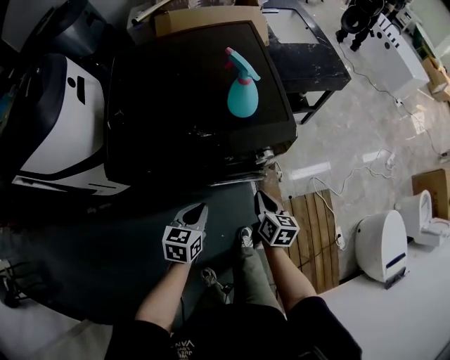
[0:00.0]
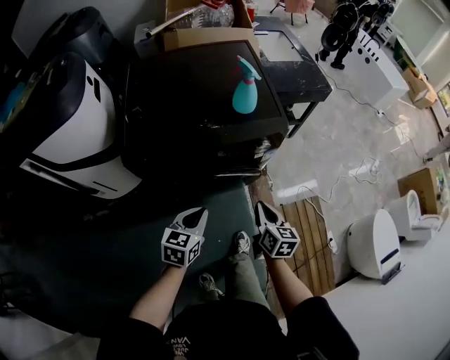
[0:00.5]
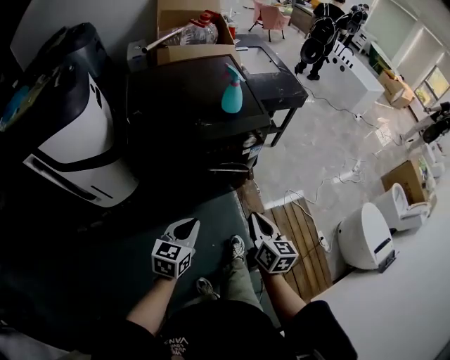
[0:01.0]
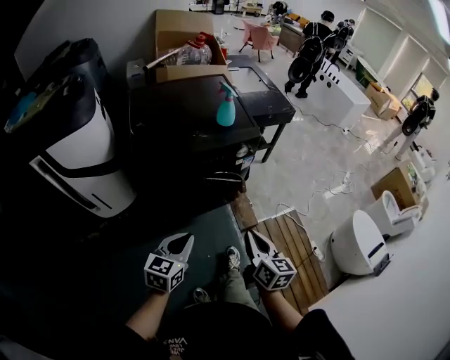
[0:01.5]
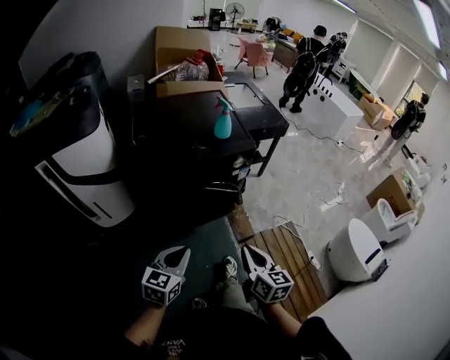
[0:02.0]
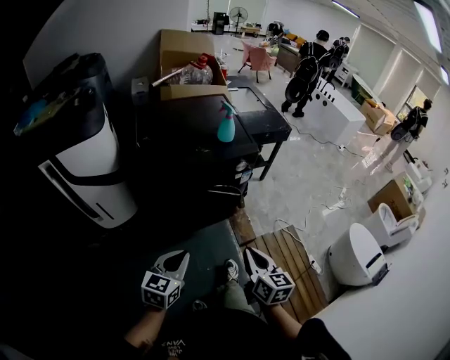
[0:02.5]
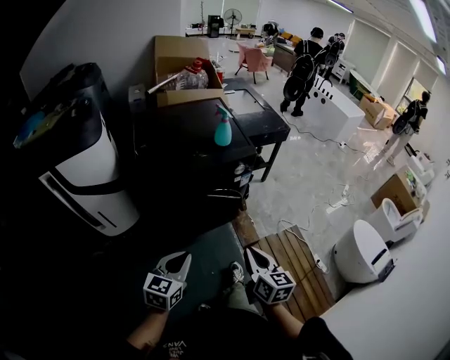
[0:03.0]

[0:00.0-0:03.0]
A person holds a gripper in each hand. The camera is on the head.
0:00.0 to 0:01.5: Both grippers travel together backward and upward, about 35 cm. The left gripper changes its angle by some 20 degrees.
0:01.5 to 0:03.0: The left gripper shifts by roughly 5 cm.

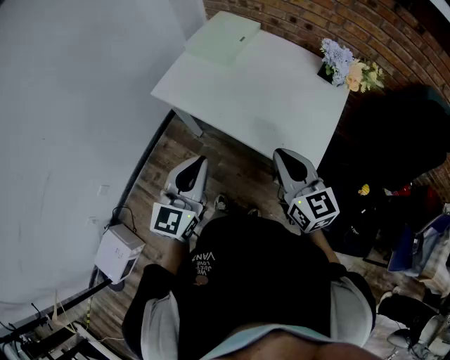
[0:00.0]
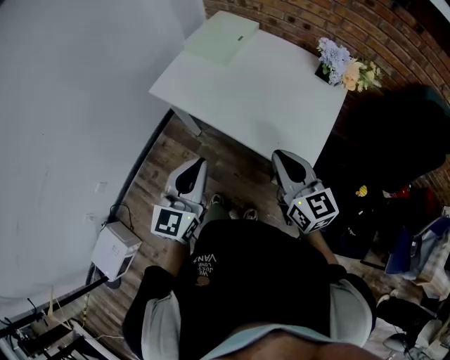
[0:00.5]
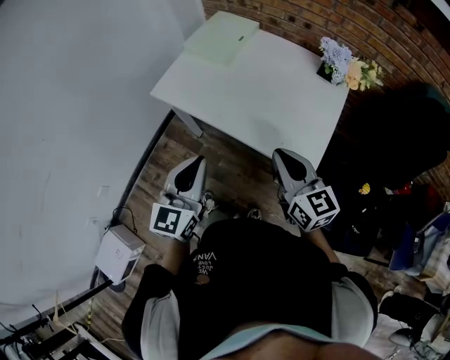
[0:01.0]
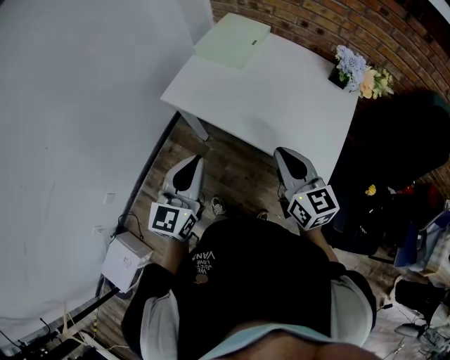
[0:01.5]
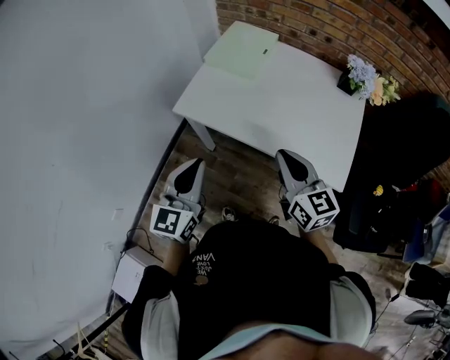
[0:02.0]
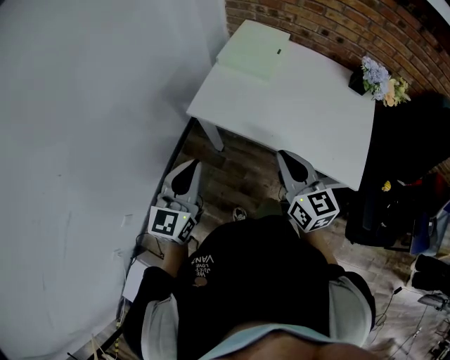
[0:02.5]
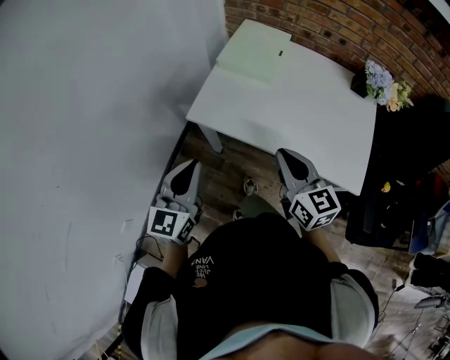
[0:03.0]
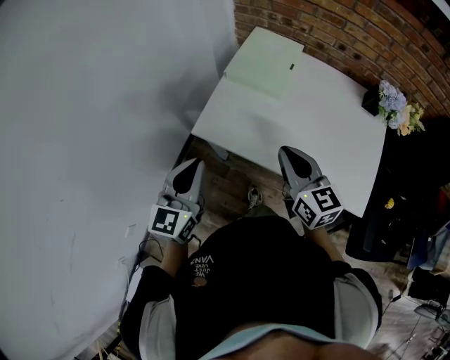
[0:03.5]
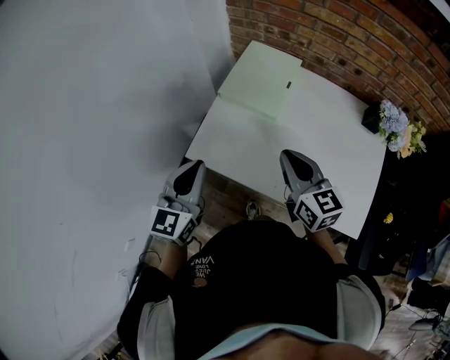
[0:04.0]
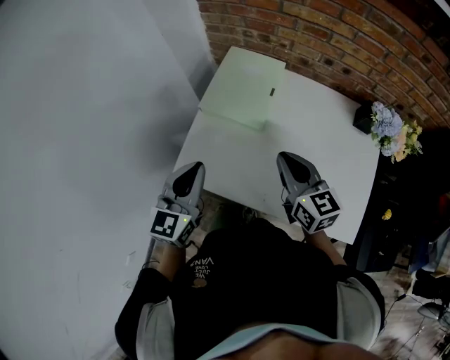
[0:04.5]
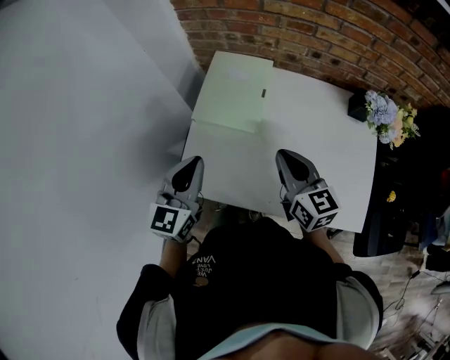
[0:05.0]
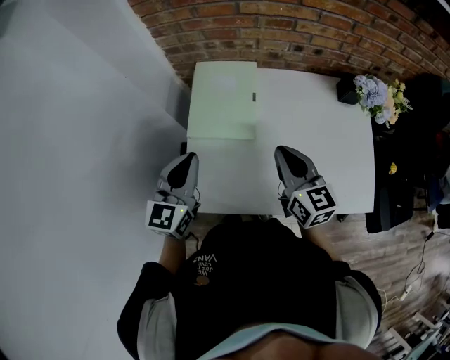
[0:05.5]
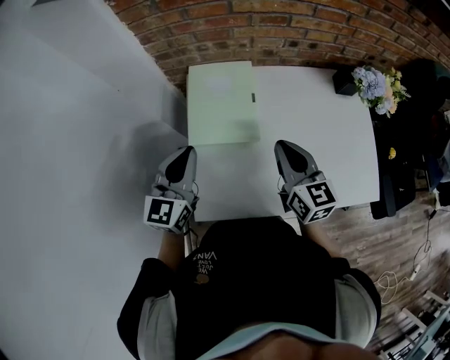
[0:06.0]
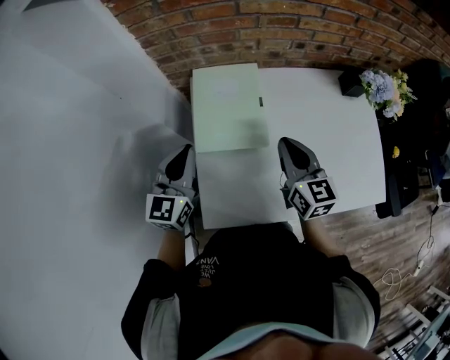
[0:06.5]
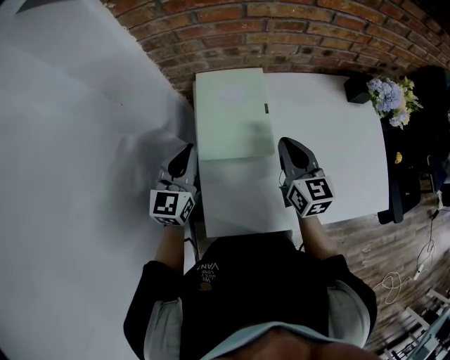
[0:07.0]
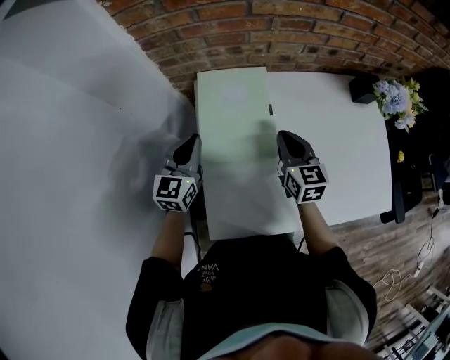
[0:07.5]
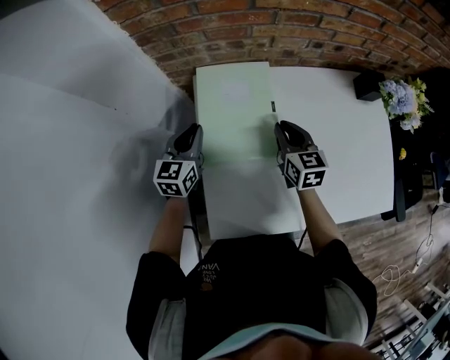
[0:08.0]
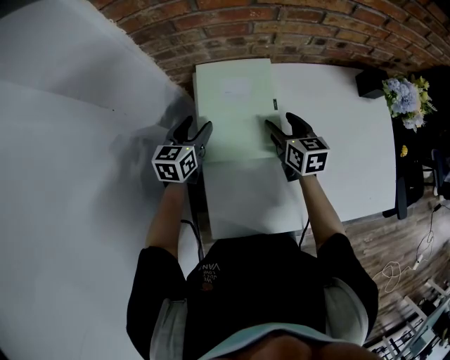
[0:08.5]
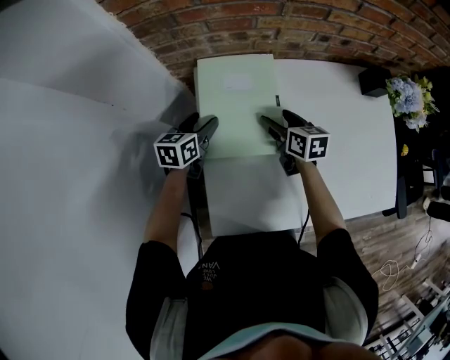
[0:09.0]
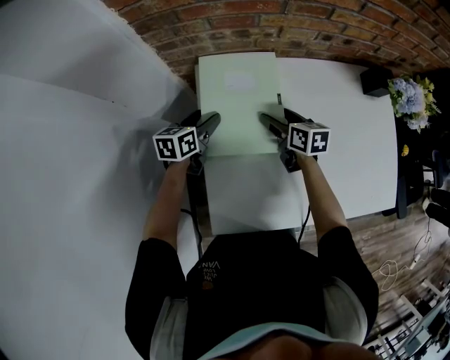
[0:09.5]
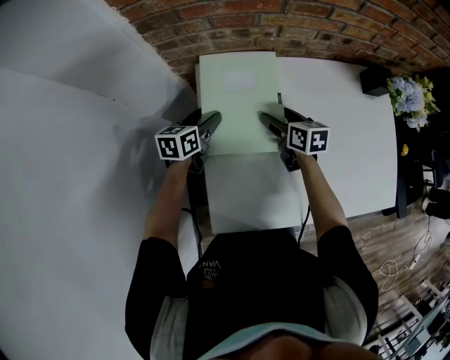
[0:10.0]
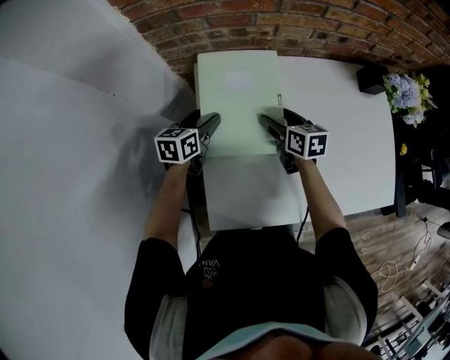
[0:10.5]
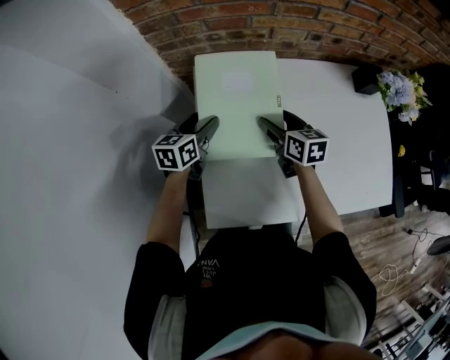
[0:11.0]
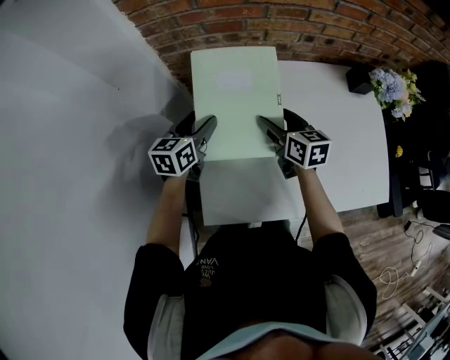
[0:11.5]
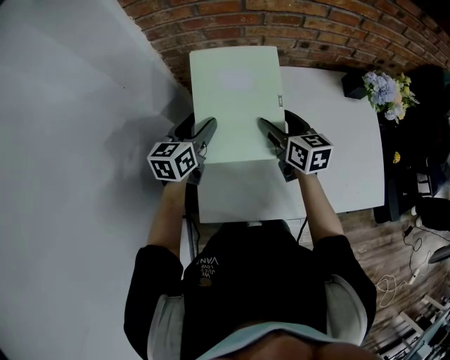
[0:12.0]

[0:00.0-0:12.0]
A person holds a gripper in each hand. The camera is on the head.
0:00.0 to 0:02.0: The two grippers go some 15 cm to the left and forward.
0:02.0 to 0:04.0: The grippers both shift forward by approximately 20 cm.
0:04.0 to 0:06.0: The right gripper changes place by roughly 10 cm, and swivels about 30 degrees; the left gripper changes place by about 25 cm, and rotates about 30 degrees.
0:06.0 to 0:08.0: The right gripper goes approximately 20 cm downward and forward. Meanwhile the left gripper travels forward and downward by about 20 cm.
0:08.0 to 0:10.0: Both grippers move downward, approximately 5 cm. The left gripper rotates roughly 30 degrees, and opens up, while the right gripper turns by some 20 degrees, and opens its fingers.
0:10.0 to 0:12.0: Both grippers move upward and backward, about 15 cm.

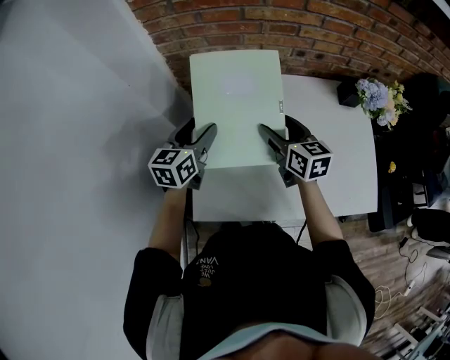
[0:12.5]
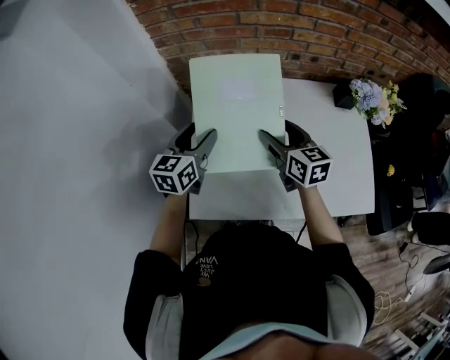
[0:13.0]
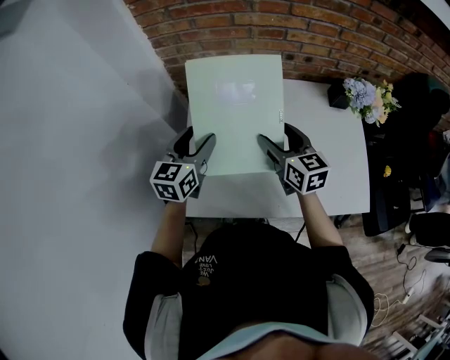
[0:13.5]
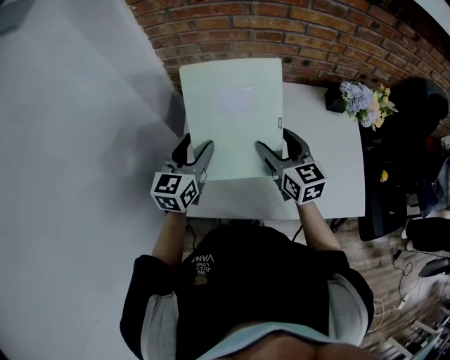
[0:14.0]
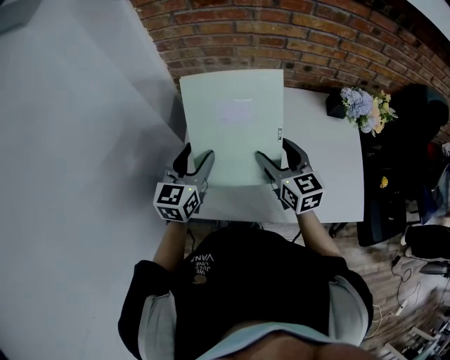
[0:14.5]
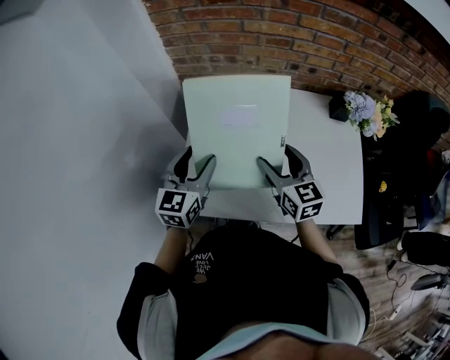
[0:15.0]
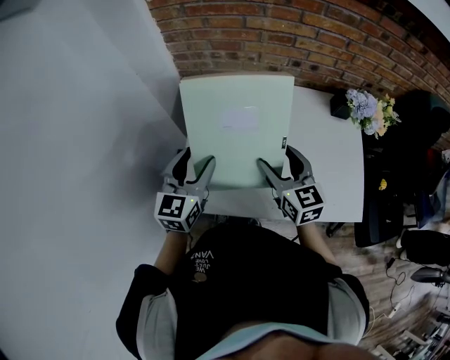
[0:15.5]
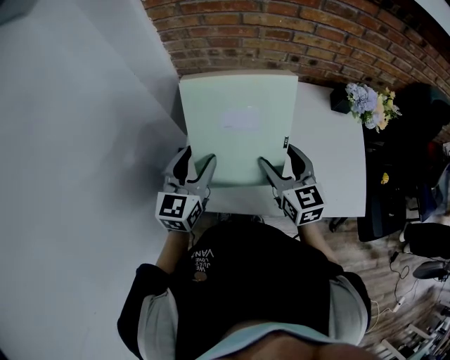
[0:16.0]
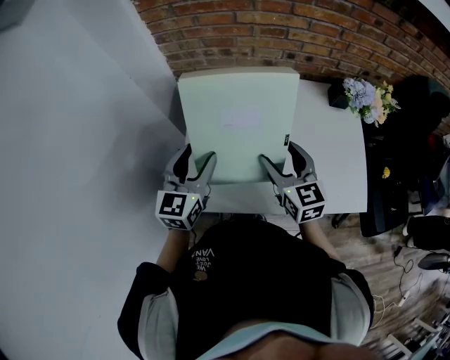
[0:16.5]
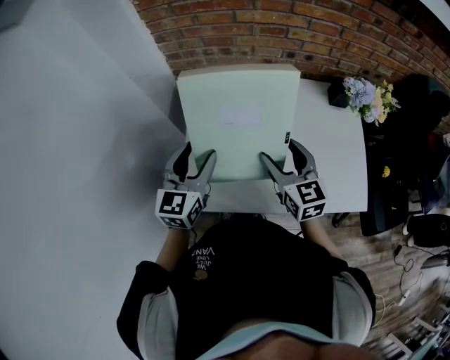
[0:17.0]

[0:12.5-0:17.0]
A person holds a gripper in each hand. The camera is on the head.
0:12.5 to 0:14.5: Both grippers travel together backward, about 10 cm.
0:14.5 to 0:17.0: The grippers move only a little.

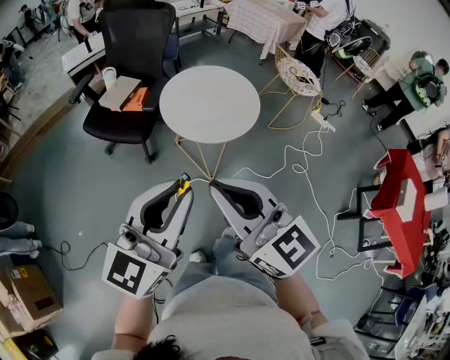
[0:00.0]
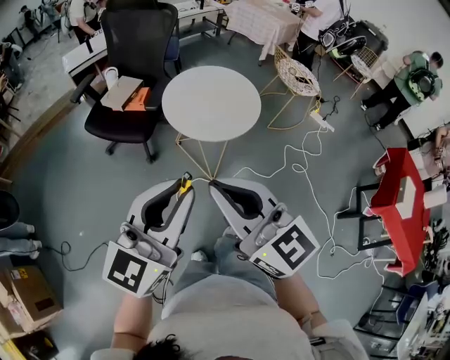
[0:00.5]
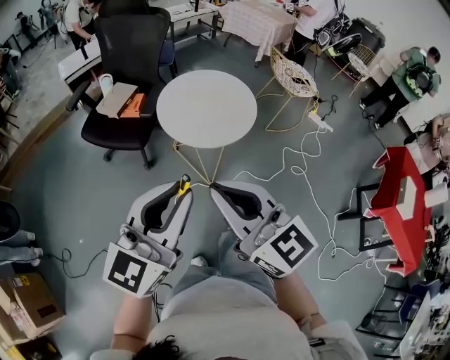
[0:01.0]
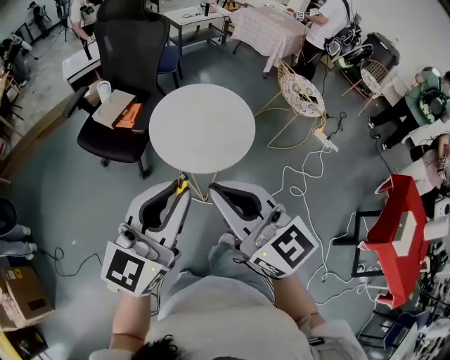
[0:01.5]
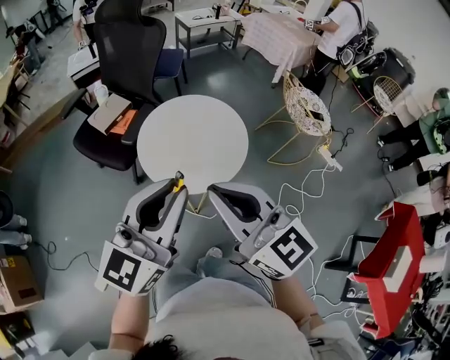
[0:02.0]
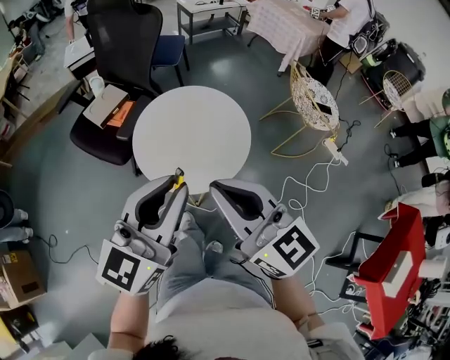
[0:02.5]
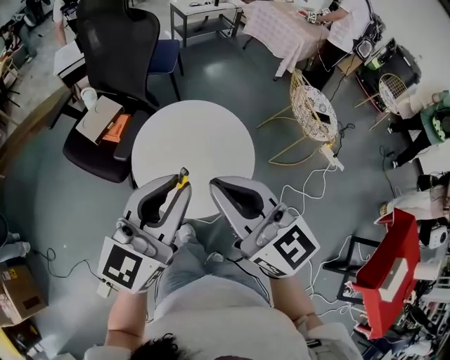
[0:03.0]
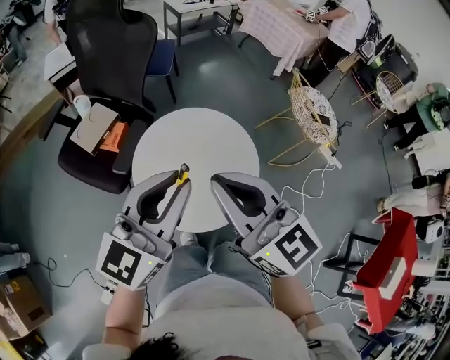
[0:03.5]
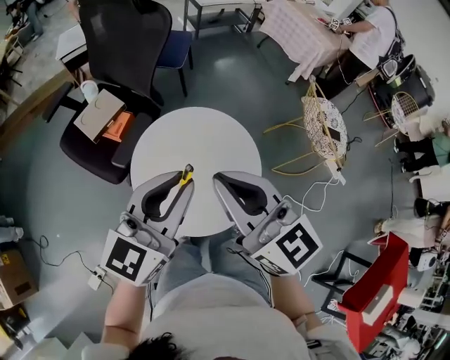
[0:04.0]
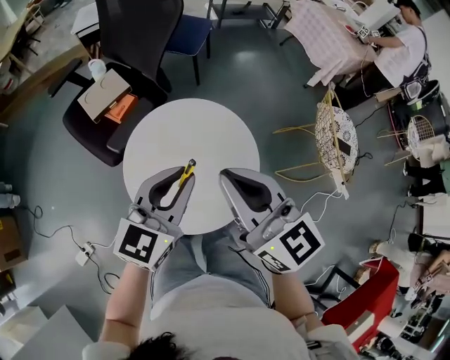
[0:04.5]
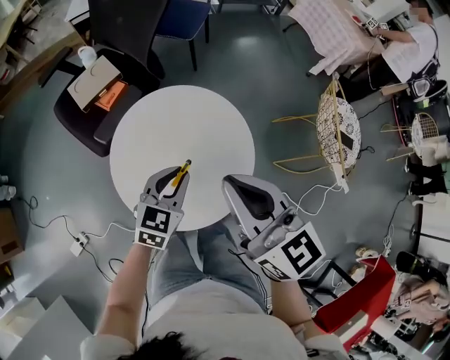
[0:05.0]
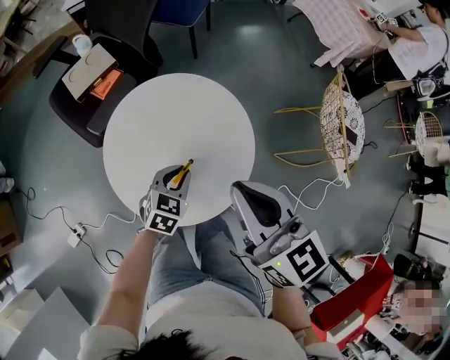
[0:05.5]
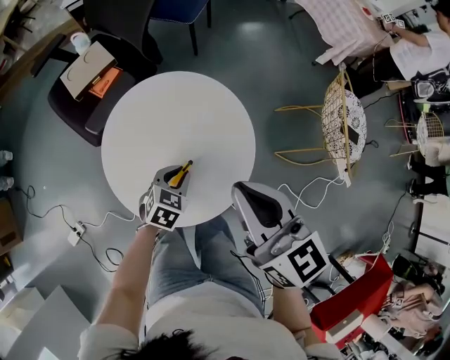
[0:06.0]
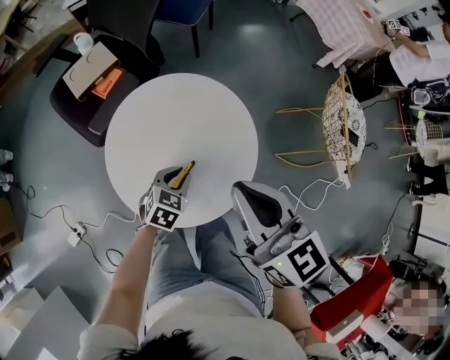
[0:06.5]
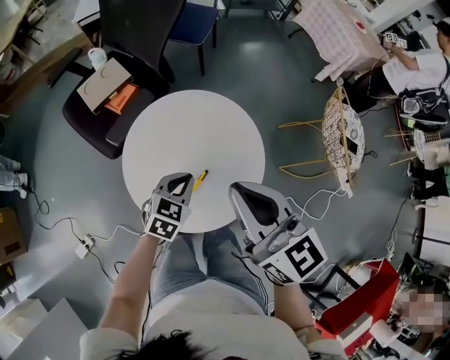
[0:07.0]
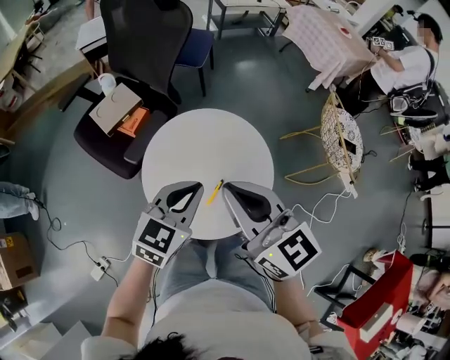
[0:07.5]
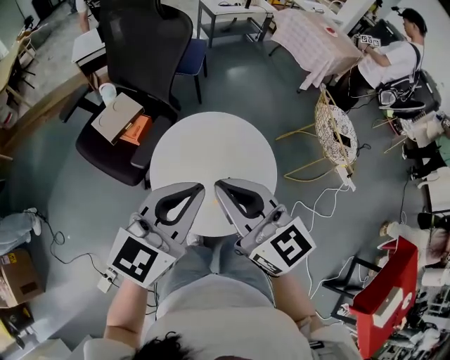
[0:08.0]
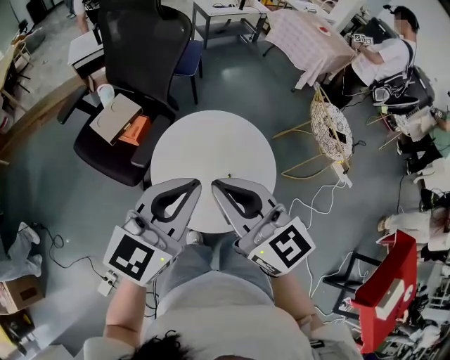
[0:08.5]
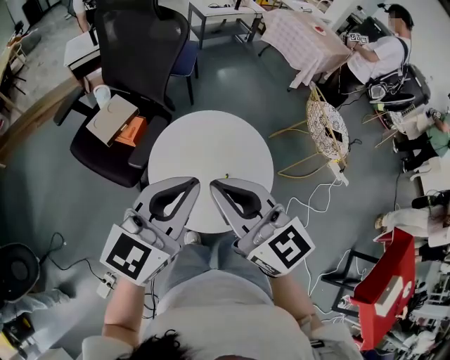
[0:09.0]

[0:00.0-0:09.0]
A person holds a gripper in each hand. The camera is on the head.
0:00.0 to 0:02.0: The two grippers go approximately 25 cm forward and to the right.
0:02.0 to 0:04.5: The left gripper goes about 30 cm forward and downward, and rotates about 20 degrees. Meanwhile the right gripper goes some 30 cm forward.
0:04.5 to 0:07.0: The left gripper heads downward, covering some 20 cm, and tips its fingers downward by roughly 30 degrees.
0:07.0 to 0:09.0: The left gripper shifts approximately 30 cm upward, and points its fingers some 40 degrees further upward; the right gripper heads to the left, upward and backward, covering approximately 15 cm.
